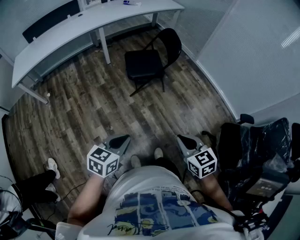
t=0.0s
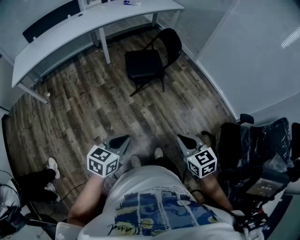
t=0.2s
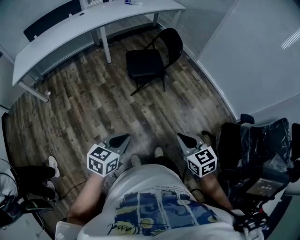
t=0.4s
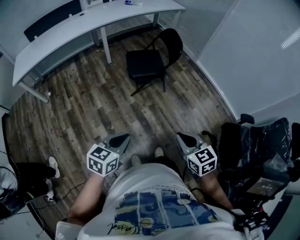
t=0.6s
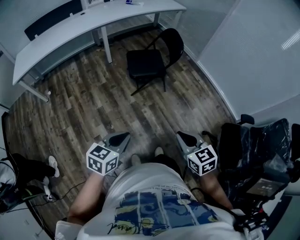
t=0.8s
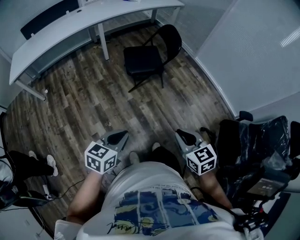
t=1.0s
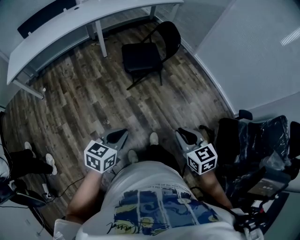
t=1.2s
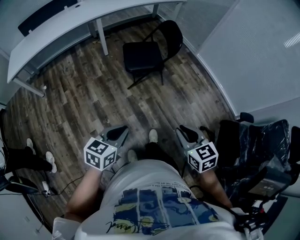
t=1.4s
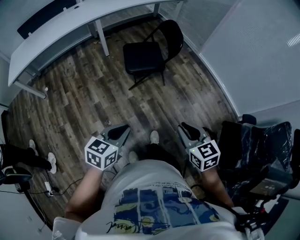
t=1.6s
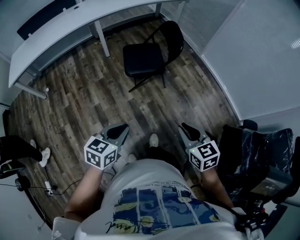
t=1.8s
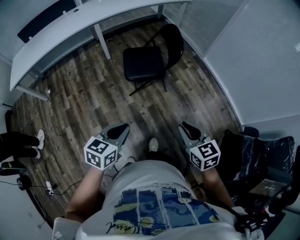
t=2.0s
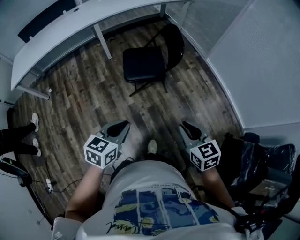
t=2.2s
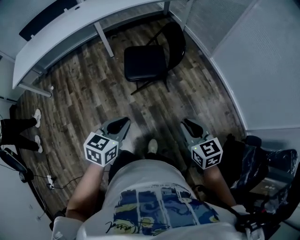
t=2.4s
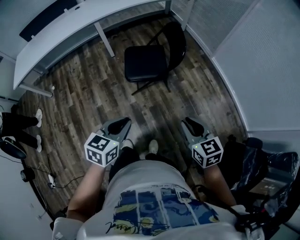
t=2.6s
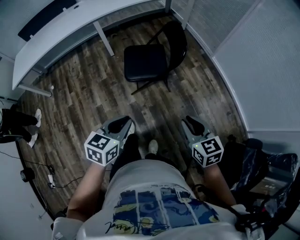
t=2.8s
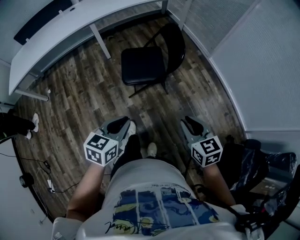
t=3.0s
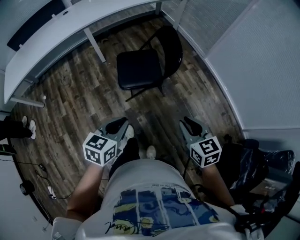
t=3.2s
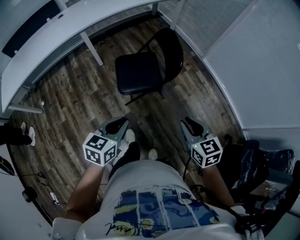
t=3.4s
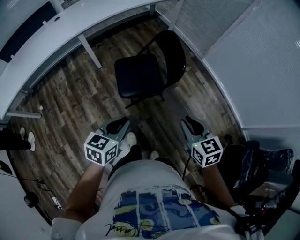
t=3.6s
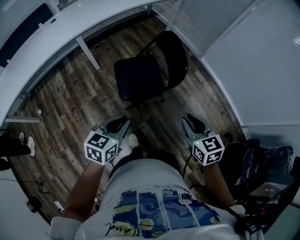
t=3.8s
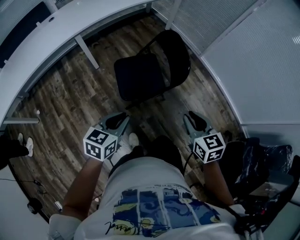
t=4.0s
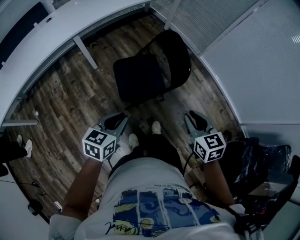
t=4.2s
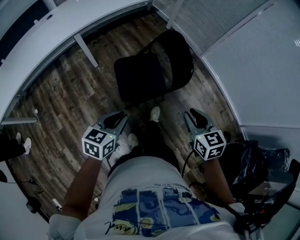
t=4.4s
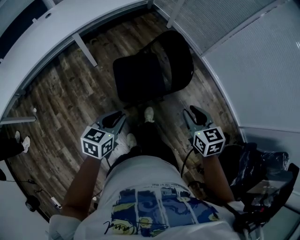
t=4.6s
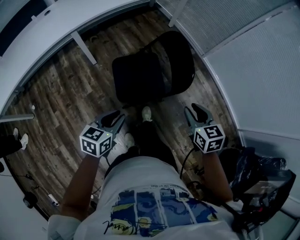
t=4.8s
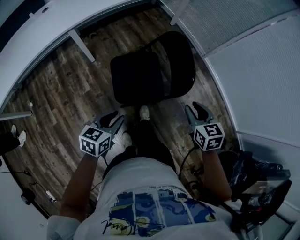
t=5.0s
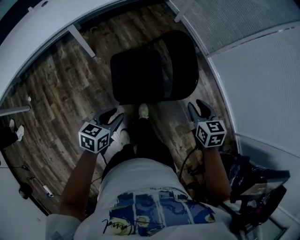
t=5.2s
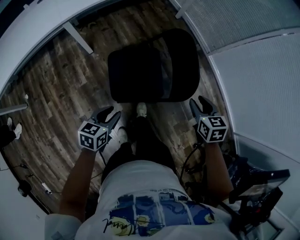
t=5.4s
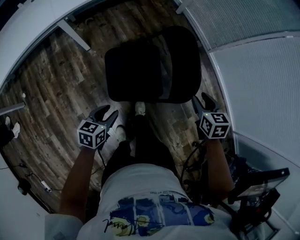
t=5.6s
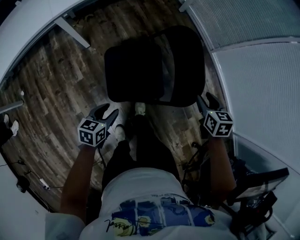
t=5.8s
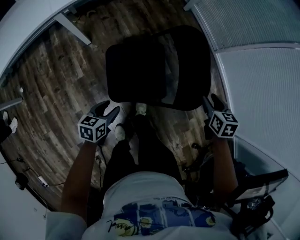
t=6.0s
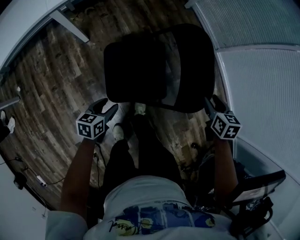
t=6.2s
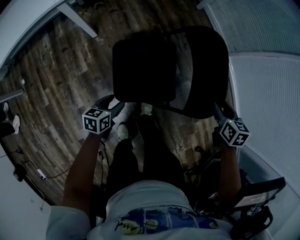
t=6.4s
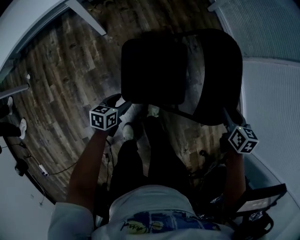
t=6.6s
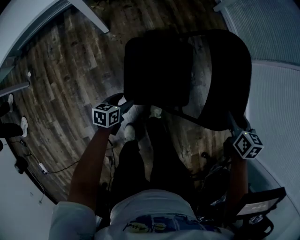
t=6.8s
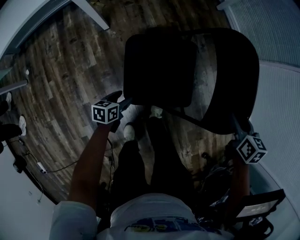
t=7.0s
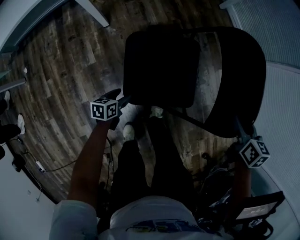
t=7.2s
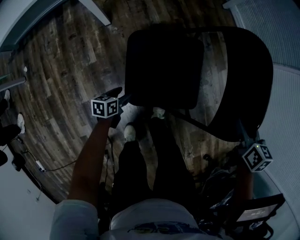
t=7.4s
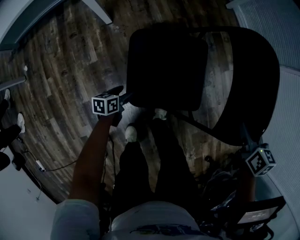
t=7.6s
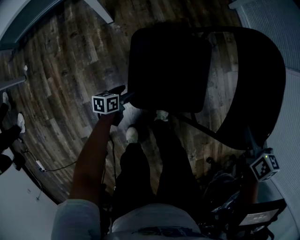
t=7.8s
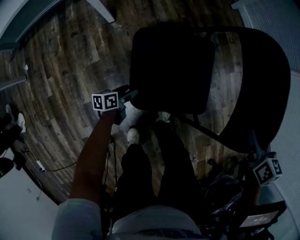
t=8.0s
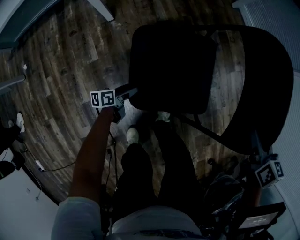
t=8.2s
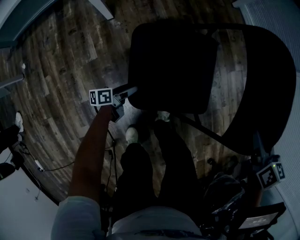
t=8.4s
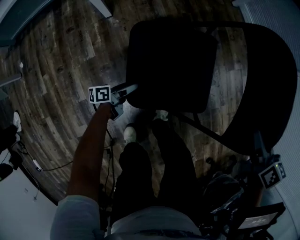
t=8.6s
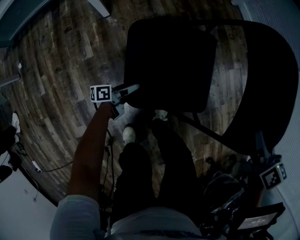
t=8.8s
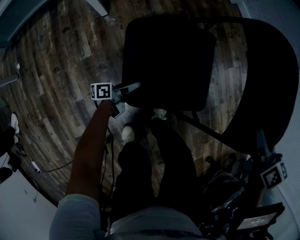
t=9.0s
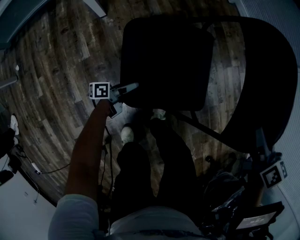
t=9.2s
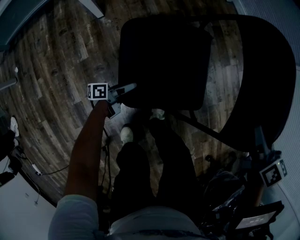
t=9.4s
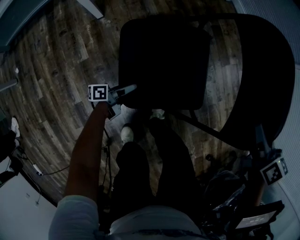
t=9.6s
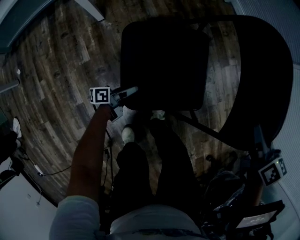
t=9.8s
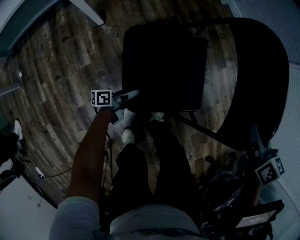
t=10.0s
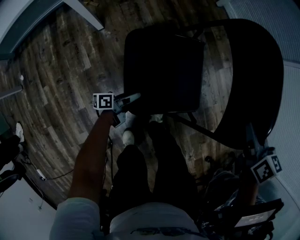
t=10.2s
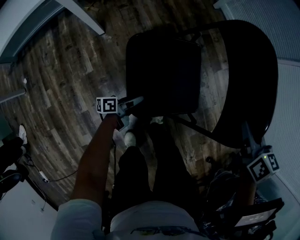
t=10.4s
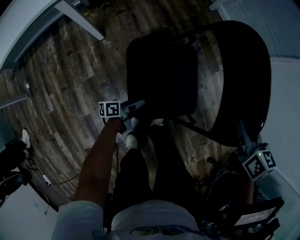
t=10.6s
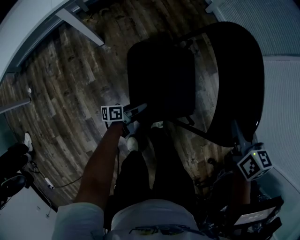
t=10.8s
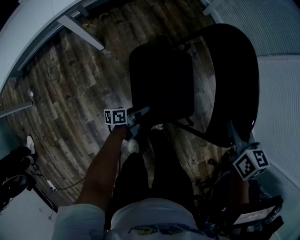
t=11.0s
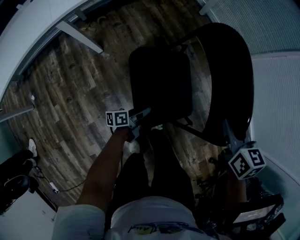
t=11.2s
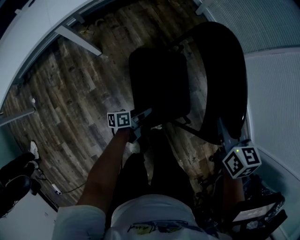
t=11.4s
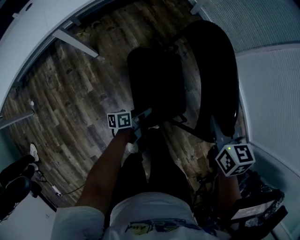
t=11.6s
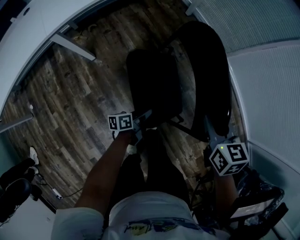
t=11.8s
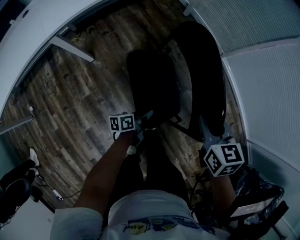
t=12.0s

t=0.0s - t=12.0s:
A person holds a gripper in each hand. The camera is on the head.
t=0.0s - t=1.6s: The two grippers go approximately 5 cm forward.
t=1.6s - t=3.0s: The left gripper moves forward, roughly 20 cm, while the right gripper heads forward and to the right, covering some 25 cm.
t=3.0s - t=4.4s: Both grippers move forward and to the left, about 20 cm.
t=4.4s - t=6.0s: The left gripper moves downward and forward, roughly 30 cm, rotates about 20 degrees, and opens its fingers. The right gripper is displaced forward and downward by roughly 35 cm, and opens its fingers.
t=6.0s - t=7.6s: The right gripper is displaced downward by approximately 5 cm. The left gripper moves downward, some 25 cm.
t=7.6s - t=9.0s: The left gripper shifts by some 5 cm, and angles its fingers upward, by approximately 30 degrees.
t=9.0s - t=10.4s: The right gripper moves roughly 5 cm, and closes its fingers. Meanwhile the left gripper heads upward, covering roughly 10 cm, and closes its fingers.
t=10.4s - t=12.0s: The right gripper shifts roughly 10 cm upward; the left gripper travels upward and to the right by some 20 cm.

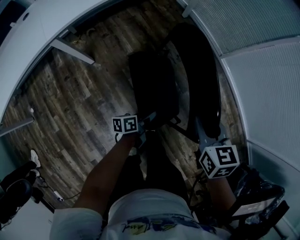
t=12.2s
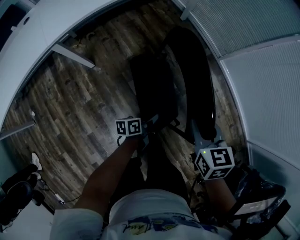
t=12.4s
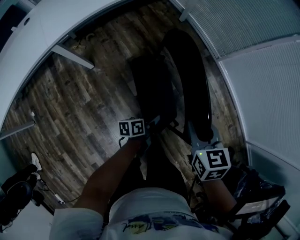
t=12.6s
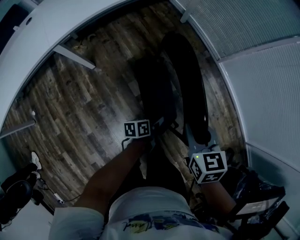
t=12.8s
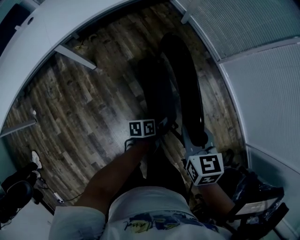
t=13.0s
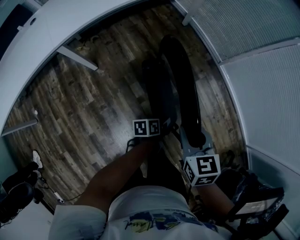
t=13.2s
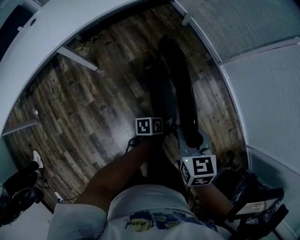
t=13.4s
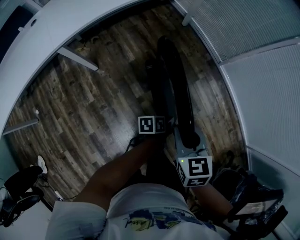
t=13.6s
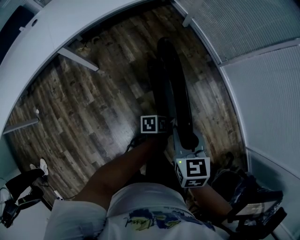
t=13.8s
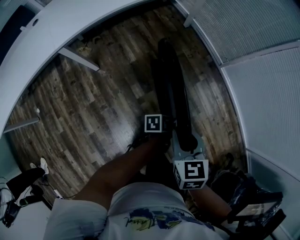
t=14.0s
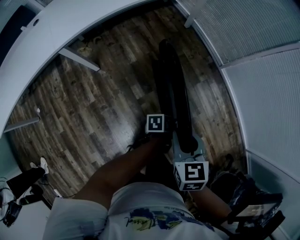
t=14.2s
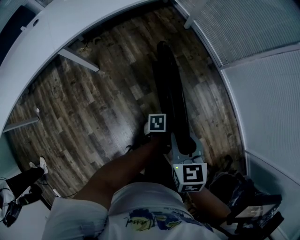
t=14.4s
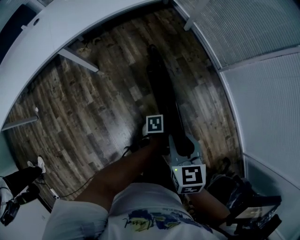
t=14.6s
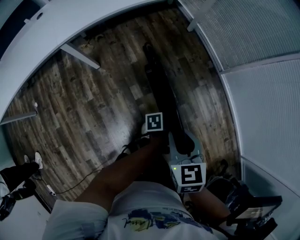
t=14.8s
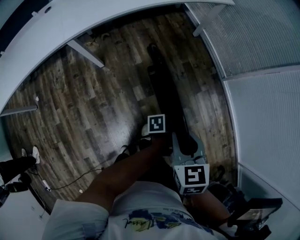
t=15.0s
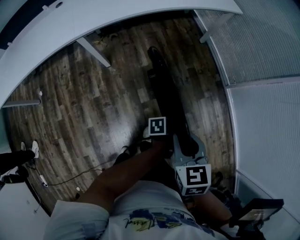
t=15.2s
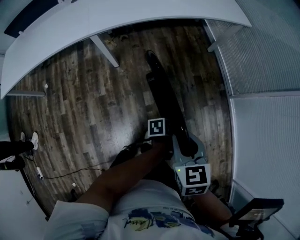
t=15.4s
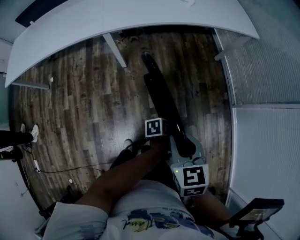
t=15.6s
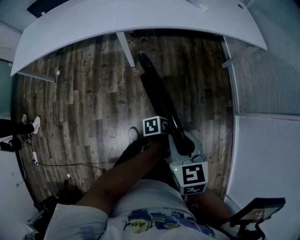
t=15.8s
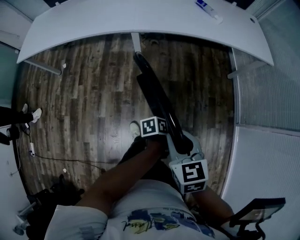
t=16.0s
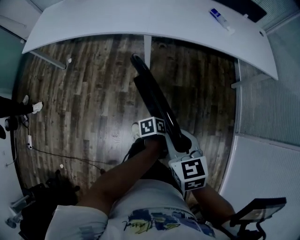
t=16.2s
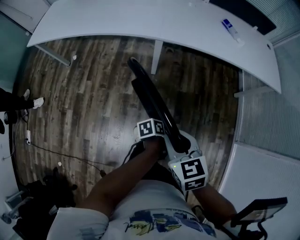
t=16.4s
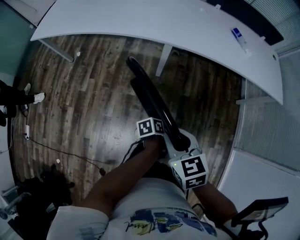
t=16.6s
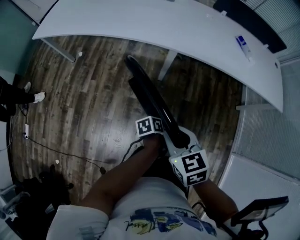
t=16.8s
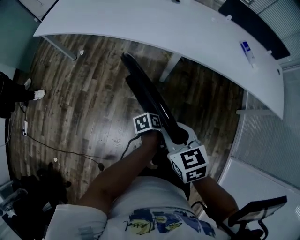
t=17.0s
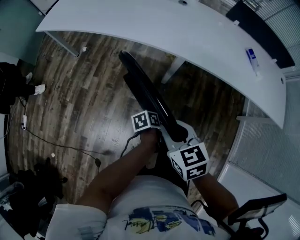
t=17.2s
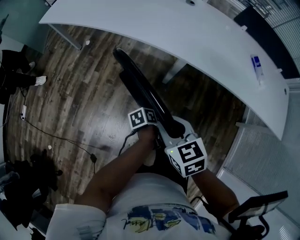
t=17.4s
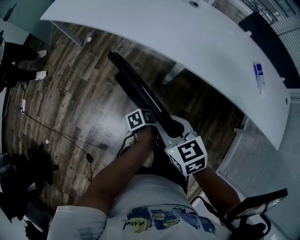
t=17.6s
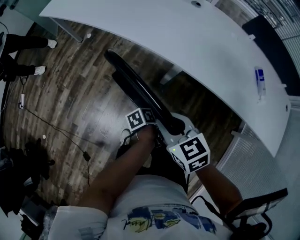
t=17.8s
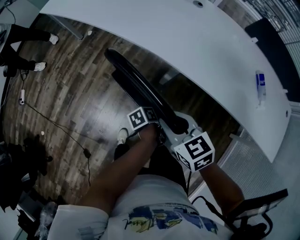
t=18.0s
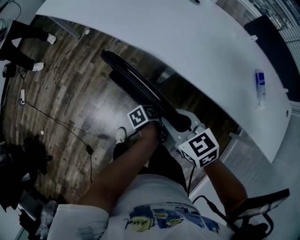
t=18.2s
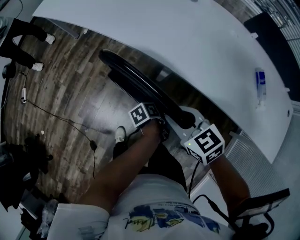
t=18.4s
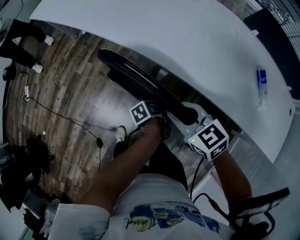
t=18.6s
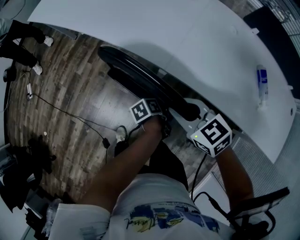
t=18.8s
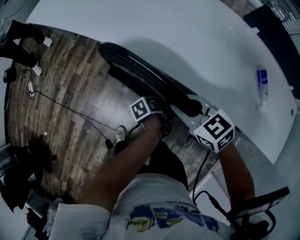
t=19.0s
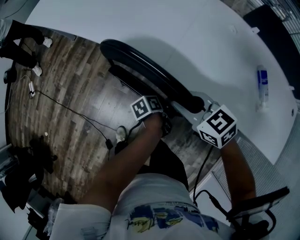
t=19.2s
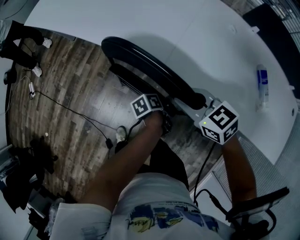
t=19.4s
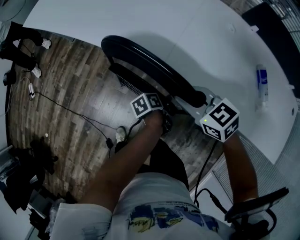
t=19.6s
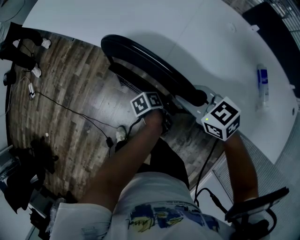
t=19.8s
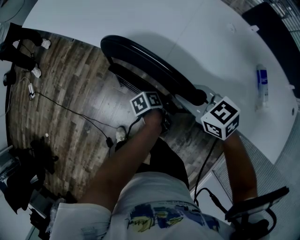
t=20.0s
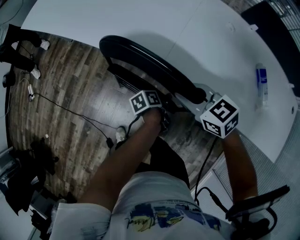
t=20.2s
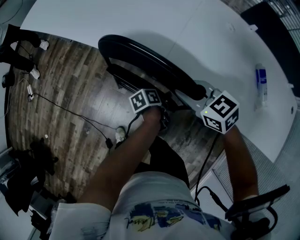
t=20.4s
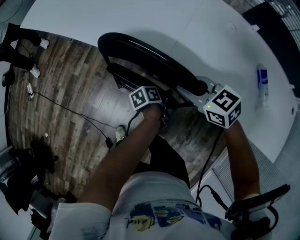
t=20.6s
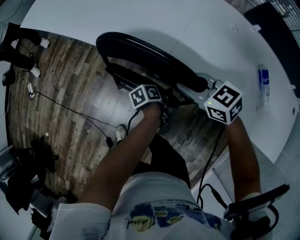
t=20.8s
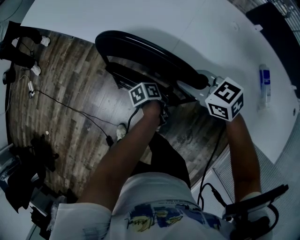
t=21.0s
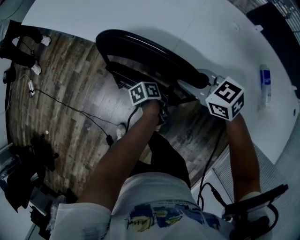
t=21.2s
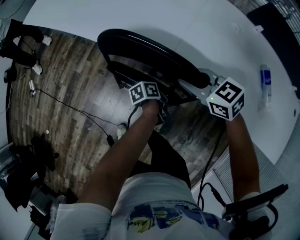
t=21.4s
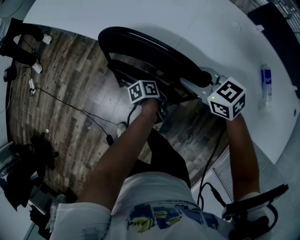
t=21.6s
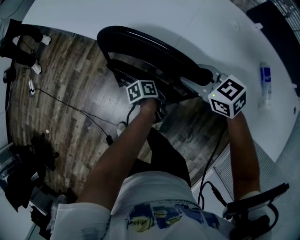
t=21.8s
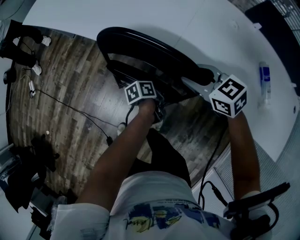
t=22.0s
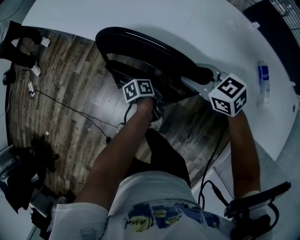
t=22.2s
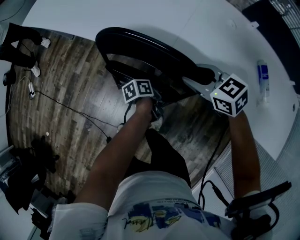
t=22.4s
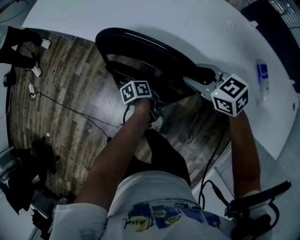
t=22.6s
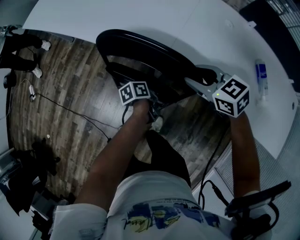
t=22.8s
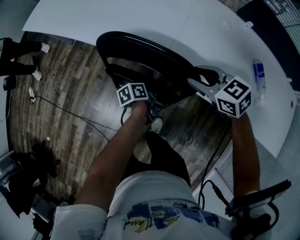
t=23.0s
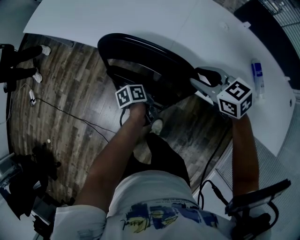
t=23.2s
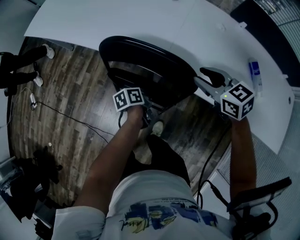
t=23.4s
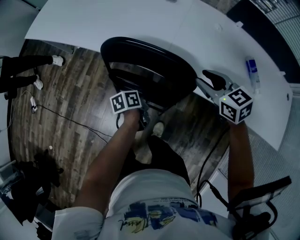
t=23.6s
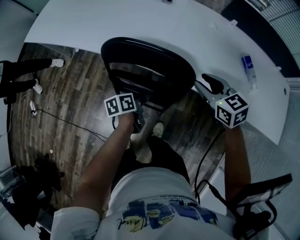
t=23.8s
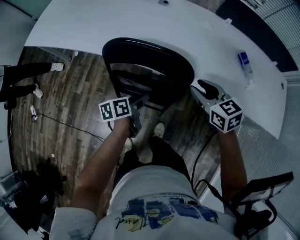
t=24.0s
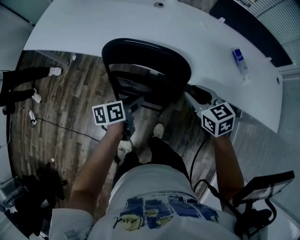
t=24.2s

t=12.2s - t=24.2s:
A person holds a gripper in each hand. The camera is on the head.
t=12.2s - t=13.8s: The left gripper heads to the right, covering roughly 10 cm.
t=13.8s - t=15.2s: The right gripper ends up approximately 5 cm from where it was.
t=15.2s - t=16.6s: The left gripper moves about 35 cm, and swivels approximately 40 degrees, while the right gripper shifts by some 30 cm, and rotates some 40 degrees.
t=16.6s - t=18.2s: The left gripper shifts by approximately 25 cm, and swivels roughly 30 degrees. The right gripper ends up about 25 cm from where it was, and rotates some 30 degrees.
t=18.2s - t=19.8s: Both grippers move forward and to the right, about 15 cm.
t=19.8s - t=22.6s: The grippers move only a little.
t=22.6s - t=24.2s: The left gripper is displaced upward and to the left by roughly 20 cm, and rotates about 30 degrees, while the right gripper shifts approximately 10 cm backward and upward, and rotates approximately 30 degrees.
